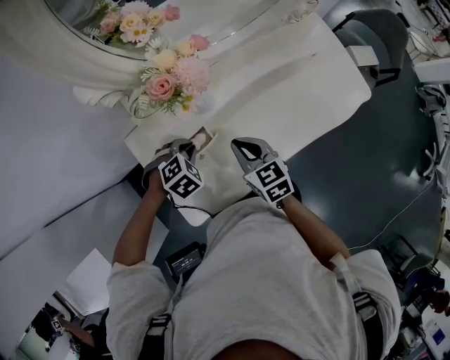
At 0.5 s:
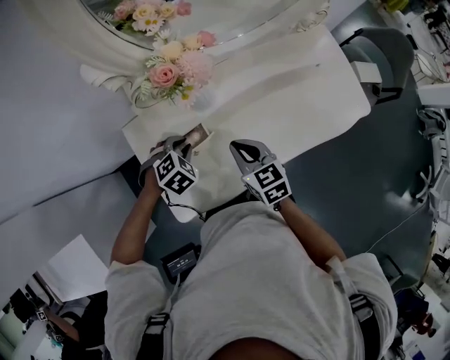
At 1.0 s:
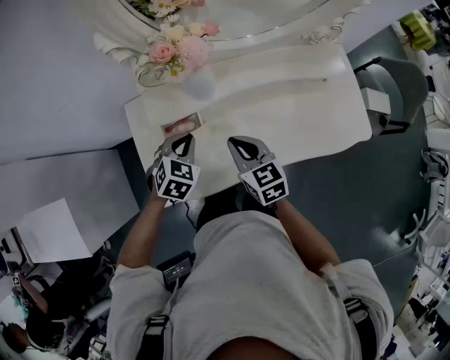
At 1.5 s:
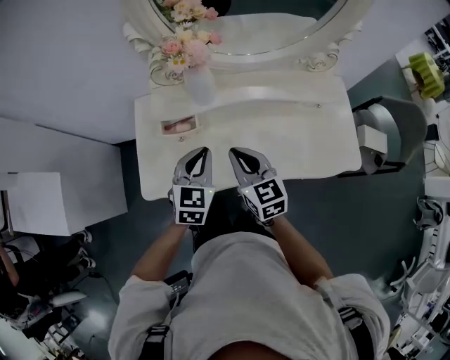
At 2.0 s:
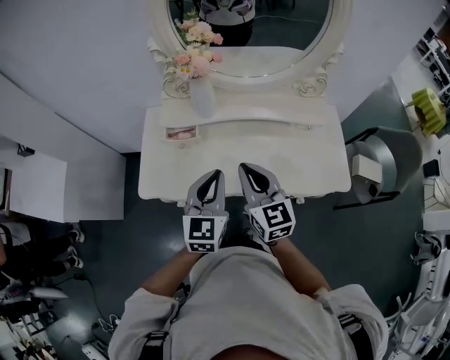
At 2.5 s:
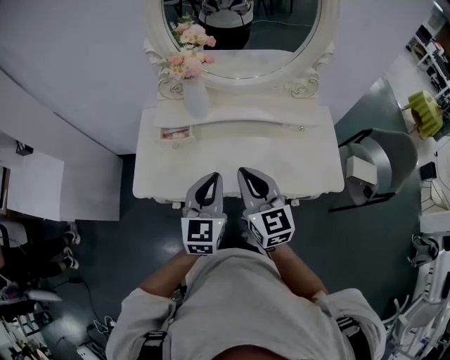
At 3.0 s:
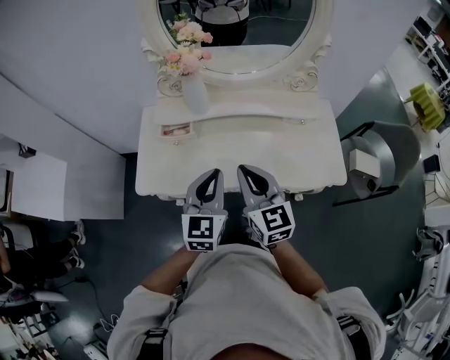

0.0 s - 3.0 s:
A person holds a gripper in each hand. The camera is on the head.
0.0 s - 1.5 s: The right gripper shifts by some 15 cm, and changes its angle by roughly 20 degrees; the left gripper ends up roughly 20 cm from where it was, and tips its fingers upward by about 40 degrees.
1.5 s - 3.0 s: The two grippers go about 15 cm backward, upward and to the right.

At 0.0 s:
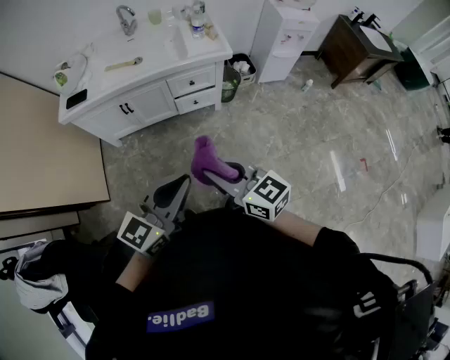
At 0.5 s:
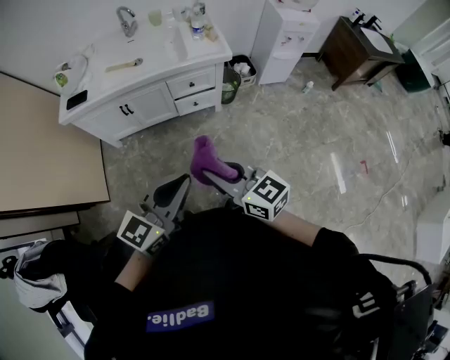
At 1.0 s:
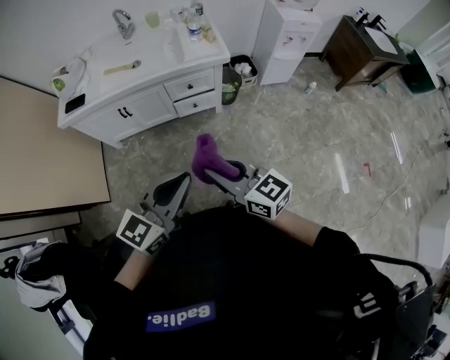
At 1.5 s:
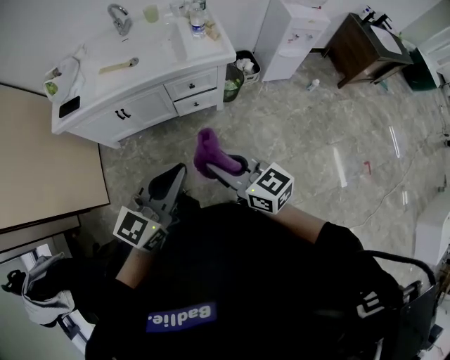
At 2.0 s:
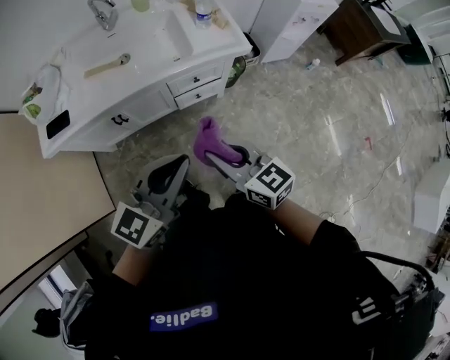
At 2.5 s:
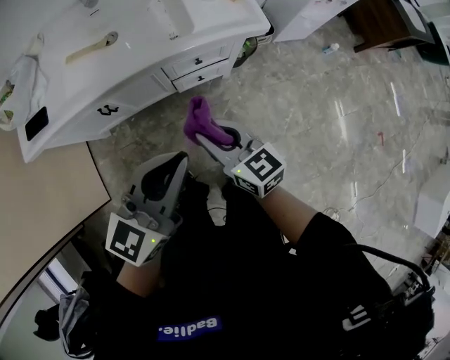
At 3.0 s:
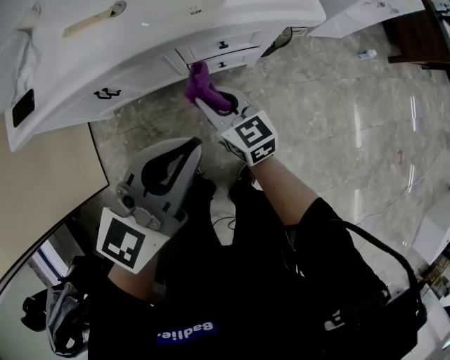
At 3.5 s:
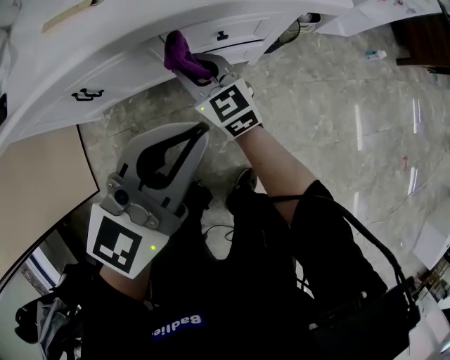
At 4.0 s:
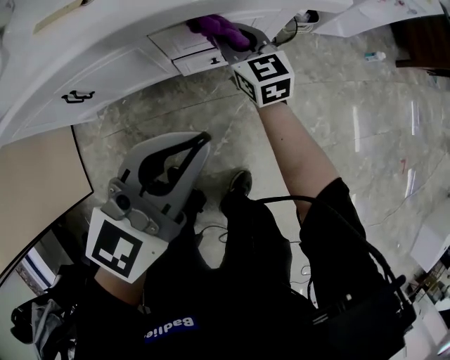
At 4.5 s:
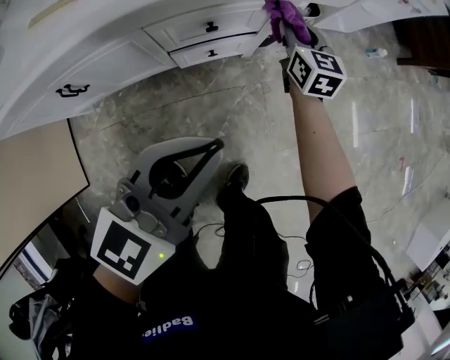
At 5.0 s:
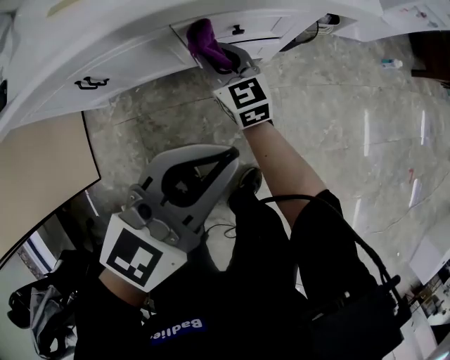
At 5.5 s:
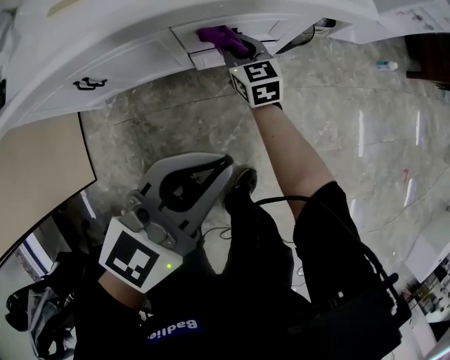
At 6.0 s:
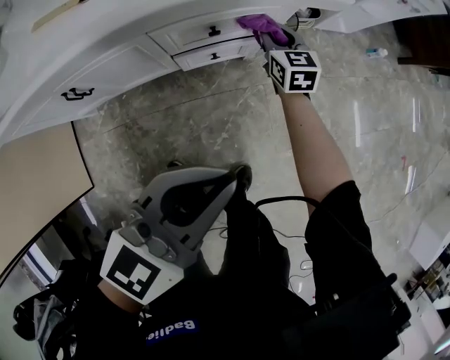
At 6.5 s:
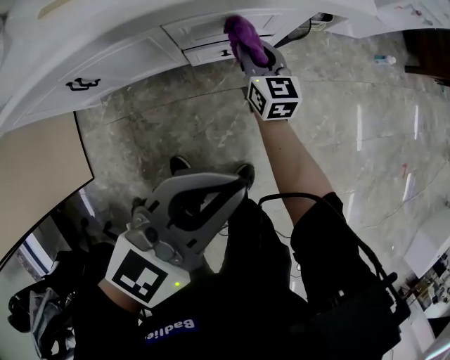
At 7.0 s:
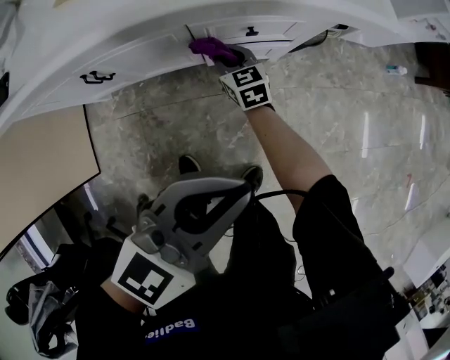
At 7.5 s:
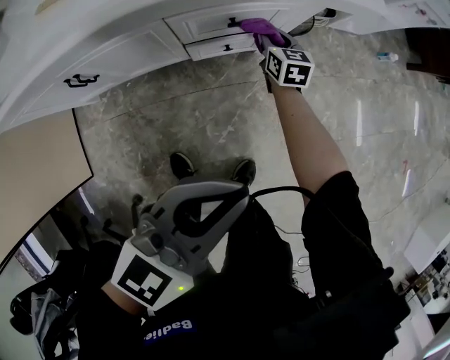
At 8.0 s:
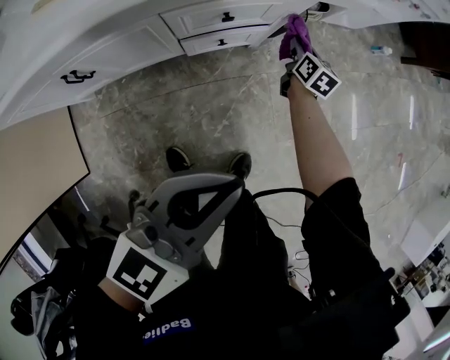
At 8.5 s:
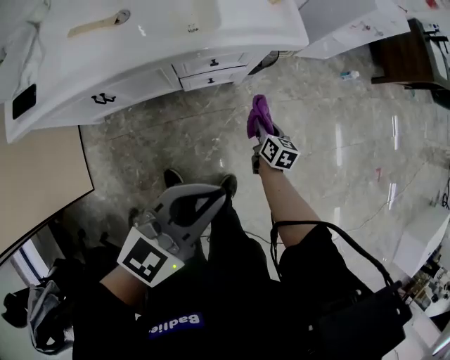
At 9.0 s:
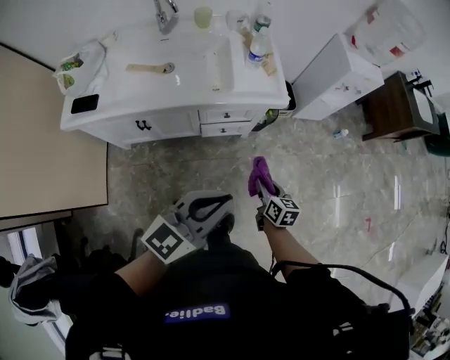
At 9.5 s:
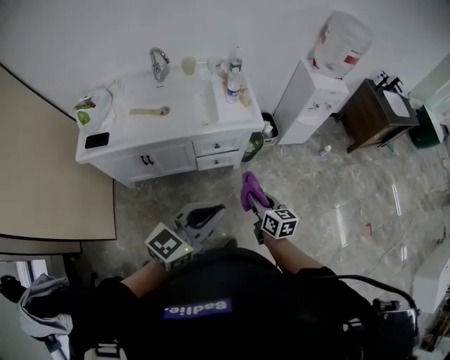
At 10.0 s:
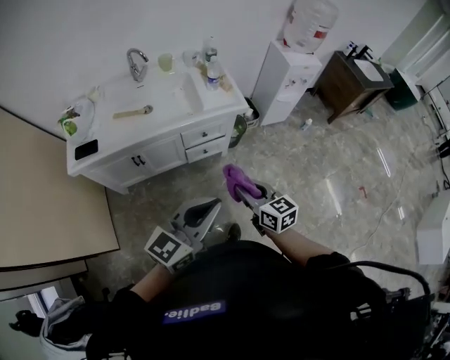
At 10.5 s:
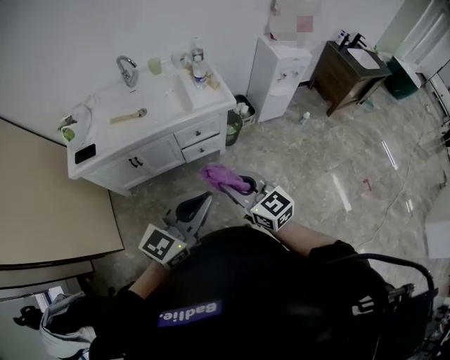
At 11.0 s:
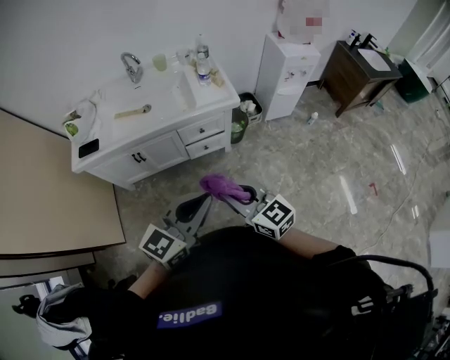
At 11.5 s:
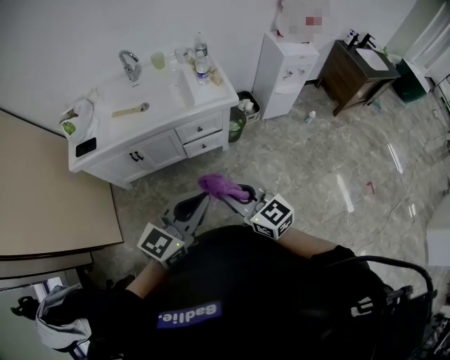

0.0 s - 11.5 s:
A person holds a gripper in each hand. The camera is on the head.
0.0 s - 2.0 s: The grippers both shift forward by approximately 25 cm.
2.0 s - 4.0 s: The right gripper goes some 50 cm downward and forward. The left gripper travels downward and forward by some 30 cm.
4.0 s - 6.0 s: The left gripper changes place by approximately 5 cm. Meanwhile the right gripper swings left and right, about 20 cm each way, with 2 reversals.
6.0 s - 7.5 s: The right gripper shifts about 10 cm downward, and reaches some 20 cm to the left, then returns.
7.5 s - 9.5 s: The right gripper shifts approximately 60 cm upward and backward; the left gripper goes approximately 35 cm upward and backward.
9.5 s - 11.5 s: The left gripper is displaced backward by approximately 5 cm. Meanwhile the right gripper goes approximately 20 cm upward and backward, and turns by about 30 degrees.

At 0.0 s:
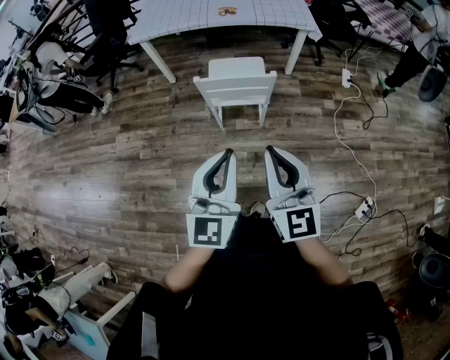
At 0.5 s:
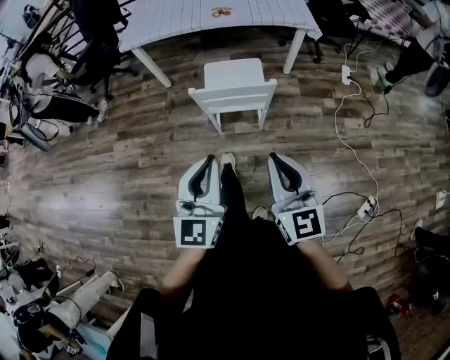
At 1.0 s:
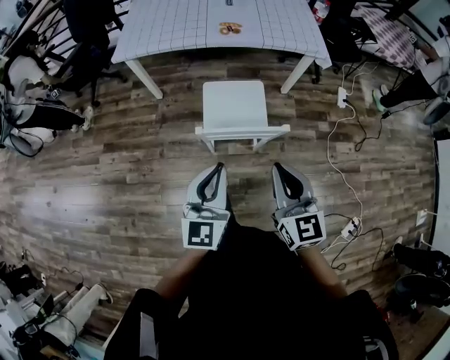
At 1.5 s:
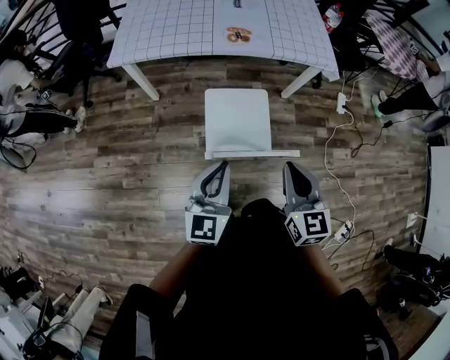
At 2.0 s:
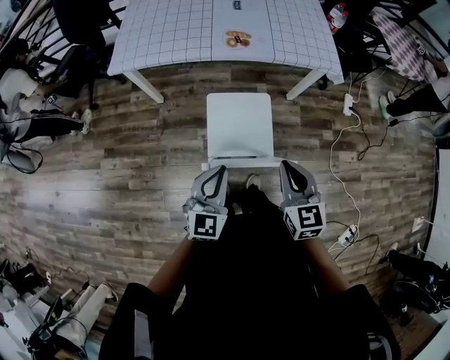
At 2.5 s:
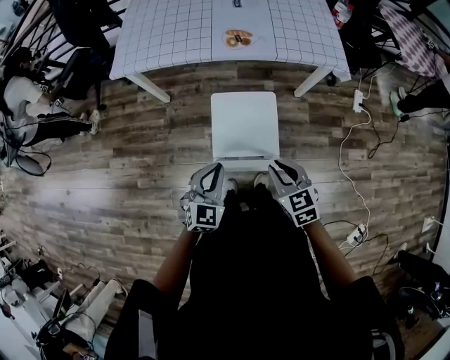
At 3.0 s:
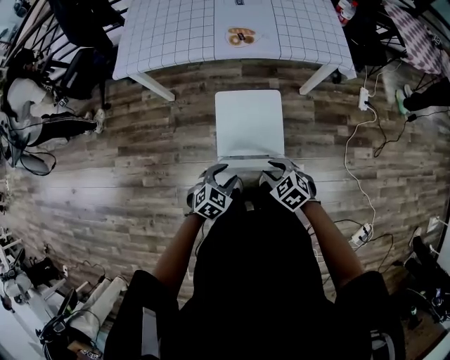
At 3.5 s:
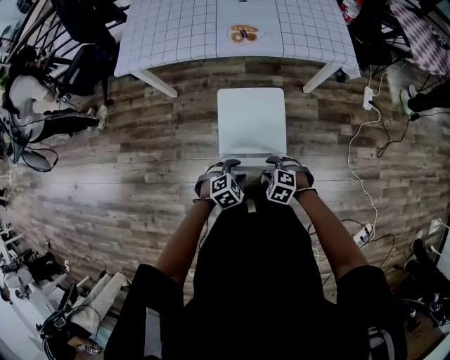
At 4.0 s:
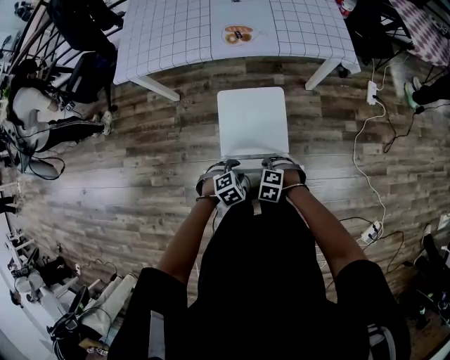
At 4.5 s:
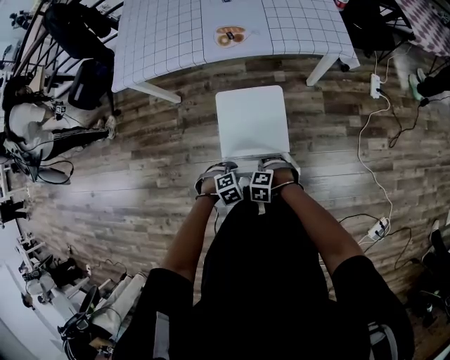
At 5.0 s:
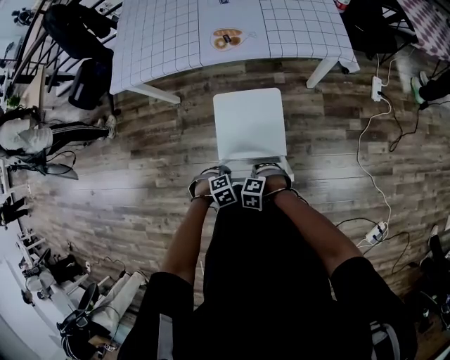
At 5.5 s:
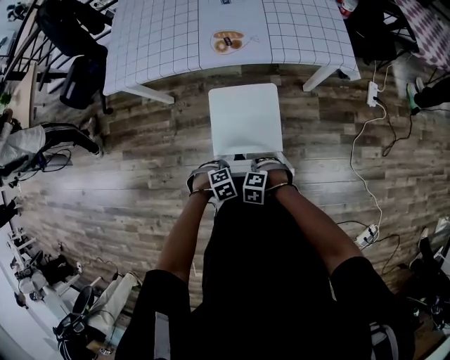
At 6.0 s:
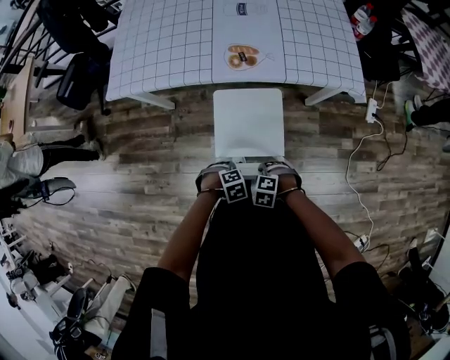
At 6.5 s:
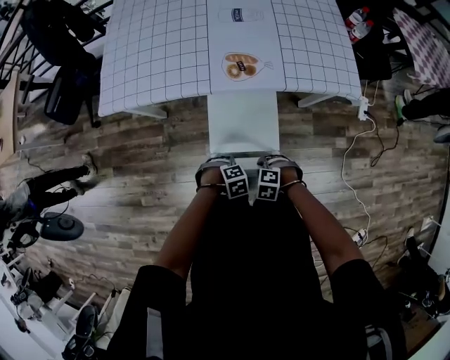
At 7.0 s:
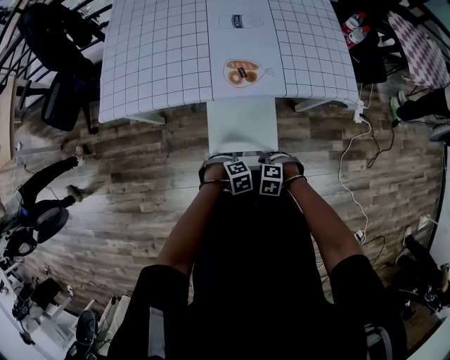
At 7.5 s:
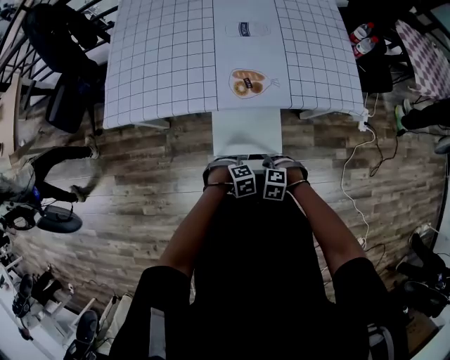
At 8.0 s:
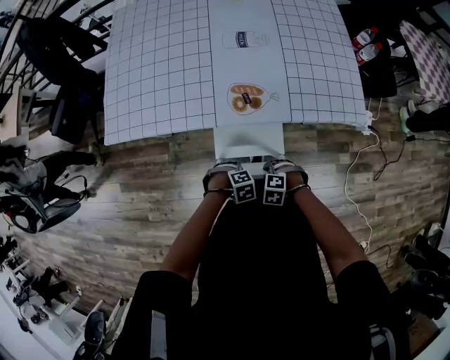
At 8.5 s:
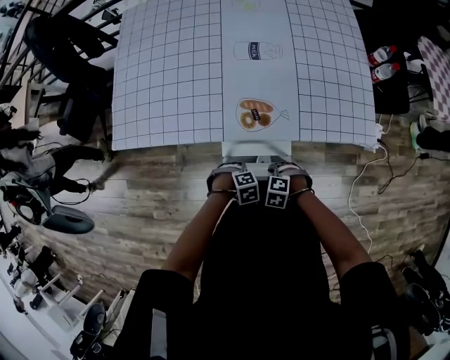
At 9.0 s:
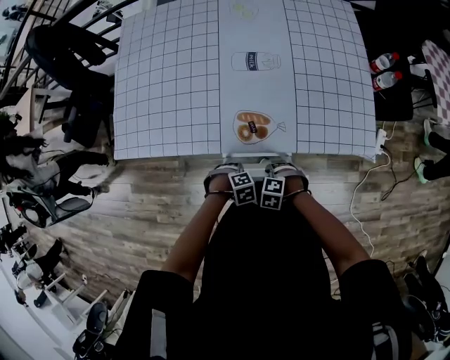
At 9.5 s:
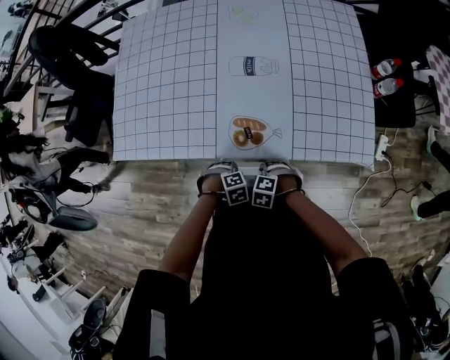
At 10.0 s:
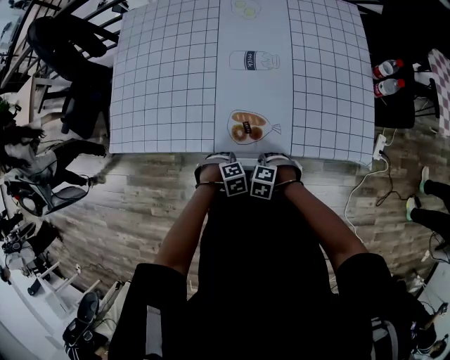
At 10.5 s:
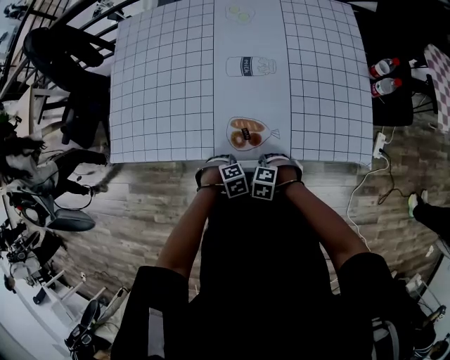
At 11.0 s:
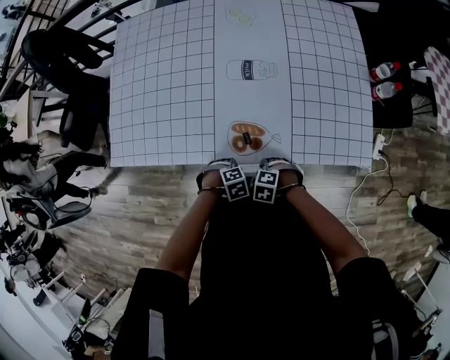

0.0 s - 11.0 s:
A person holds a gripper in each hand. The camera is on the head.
0.0 s - 2.0 s: Both grippers travel together forward, approximately 40 cm. The right gripper rotates approximately 20 degrees.
2.0 s - 3.5 s: The grippers both shift downward by approximately 25 cm. The left gripper angles its fingers downward, by some 50 degrees, and opens up; the right gripper points its fingers approximately 40 degrees further downward, and opens up.
3.5 s - 5.5 s: The left gripper is displaced downward by roughly 5 cm, changes its angle by roughly 20 degrees, and closes, while the right gripper moves about 10 cm, and closes its fingers.
5.5 s - 7.5 s: The left gripper moves about 20 cm; the right gripper shifts by about 20 cm.
7.5 s - 9.0 s: The right gripper shifts by some 15 cm. Meanwhile the left gripper changes place by roughly 15 cm.
9.0 s - 11.0 s: The right gripper changes place by some 5 cm, while the left gripper changes place by about 5 cm.

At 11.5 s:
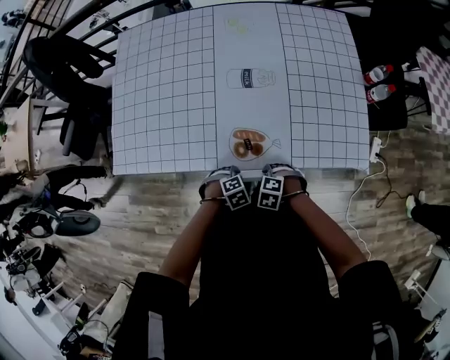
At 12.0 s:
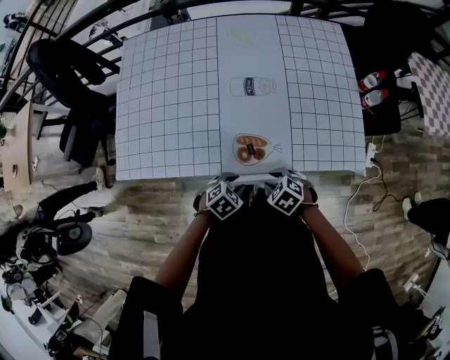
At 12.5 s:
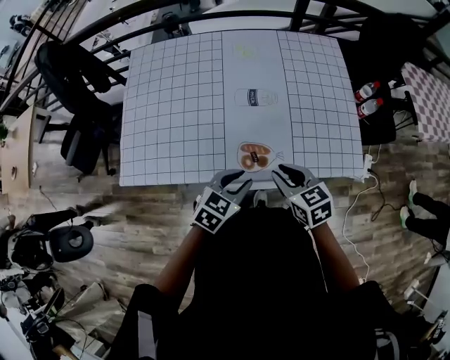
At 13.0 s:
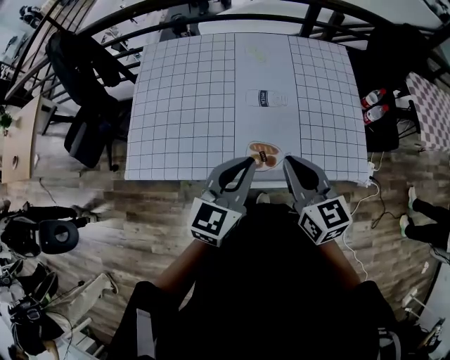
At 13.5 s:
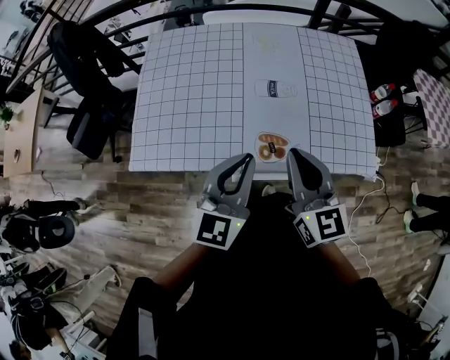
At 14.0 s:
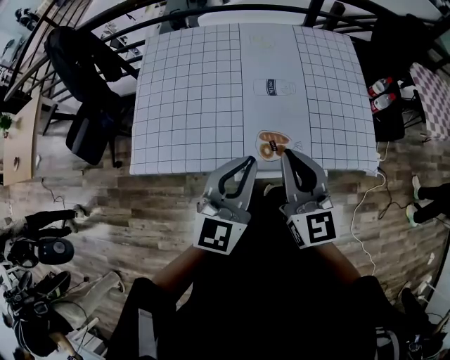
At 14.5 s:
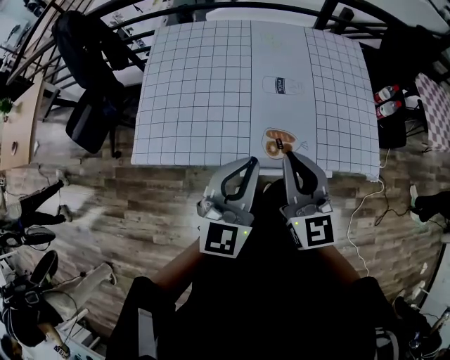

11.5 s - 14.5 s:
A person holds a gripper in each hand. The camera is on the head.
11.5 s - 13.0 s: The grippers both shift upward by some 40 cm. The right gripper tilts its fingers about 60 degrees upward, and closes its fingers. Meanwhile the left gripper angles its fingers upward, by about 70 degrees, and closes its fingers.
13.0 s - 14.5 s: Both grippers travel together to the left, roughly 5 cm.
